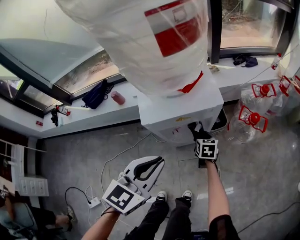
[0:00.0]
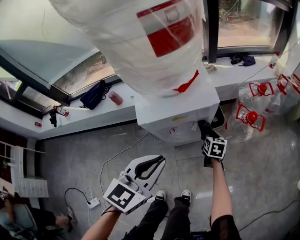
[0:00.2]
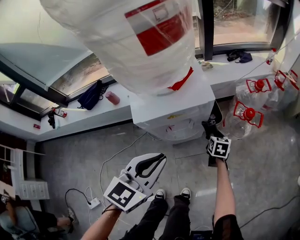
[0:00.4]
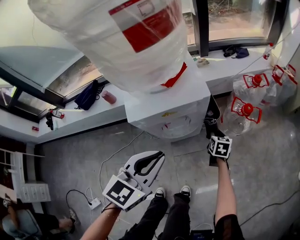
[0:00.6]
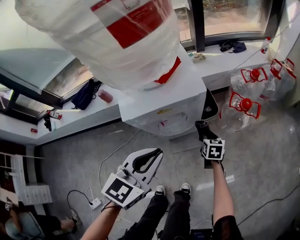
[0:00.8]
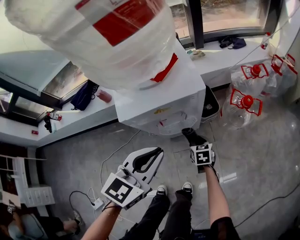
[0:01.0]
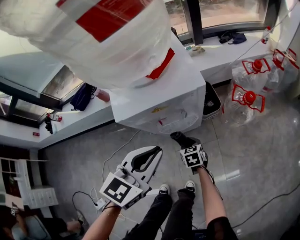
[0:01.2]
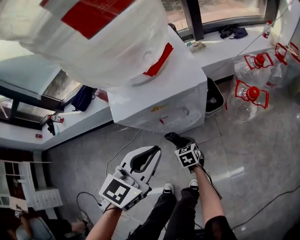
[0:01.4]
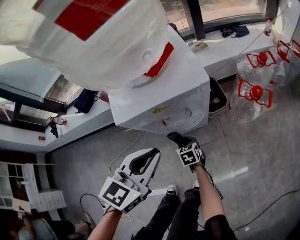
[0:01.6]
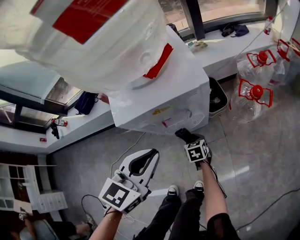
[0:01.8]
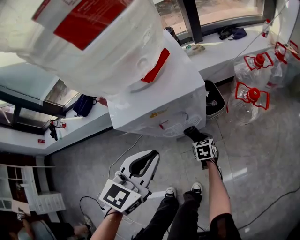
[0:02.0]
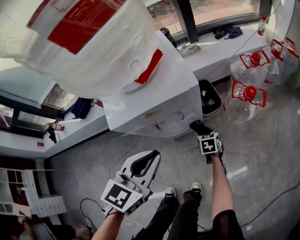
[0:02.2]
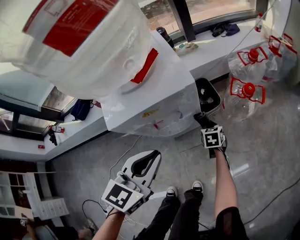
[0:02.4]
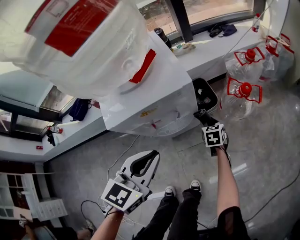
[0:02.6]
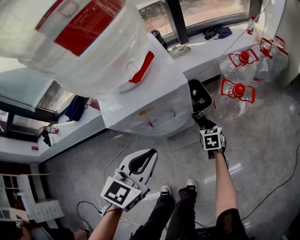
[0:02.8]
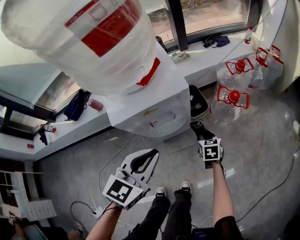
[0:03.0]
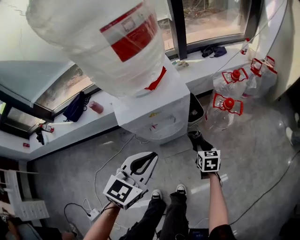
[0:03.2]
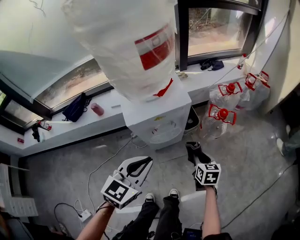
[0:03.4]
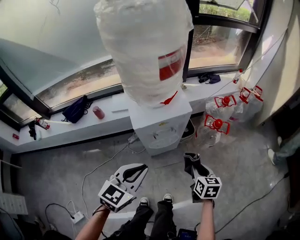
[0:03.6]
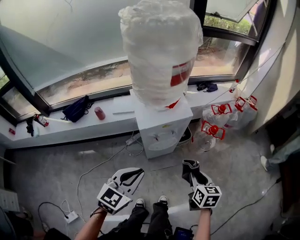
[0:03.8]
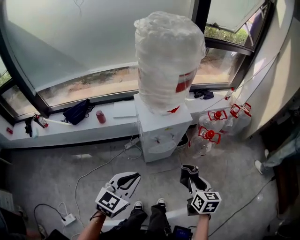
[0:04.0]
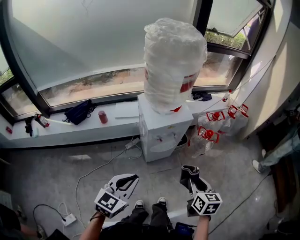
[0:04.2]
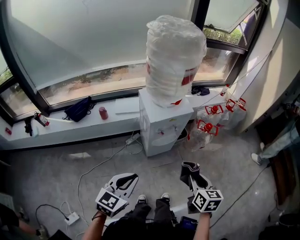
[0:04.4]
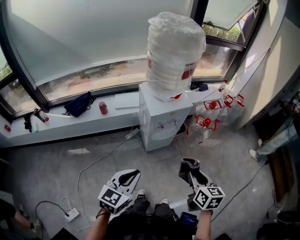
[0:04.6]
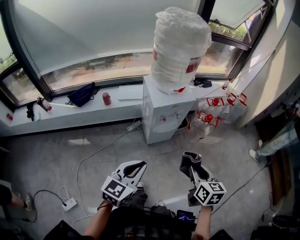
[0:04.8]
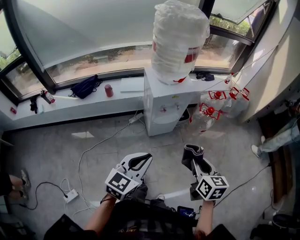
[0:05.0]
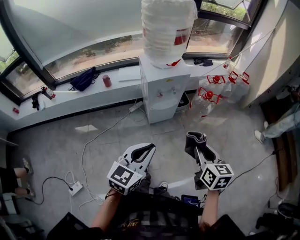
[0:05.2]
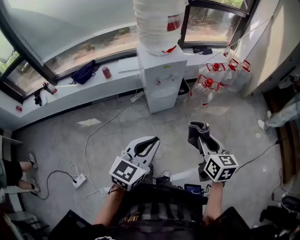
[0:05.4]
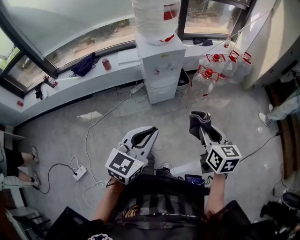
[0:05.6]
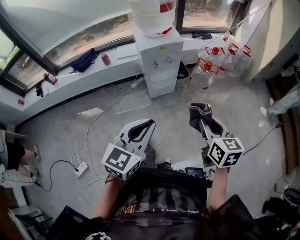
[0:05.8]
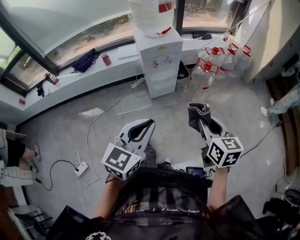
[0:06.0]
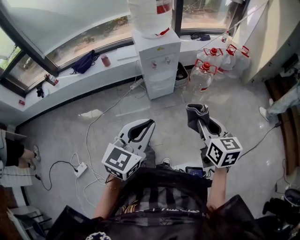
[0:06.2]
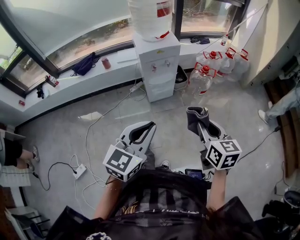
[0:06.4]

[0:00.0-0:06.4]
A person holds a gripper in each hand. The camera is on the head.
0.0 to 1.6 s: The right gripper moves downward, backward and to the left, some 15 cm. The left gripper heads downward, covering some 5 cm.
1.6 to 3.2 s: The left gripper travels upward by approximately 5 cm, while the right gripper travels to the right and upward by about 25 cm, and turns by roughly 20 degrees.
3.2 to 4.8 s: The right gripper heads upward and backward, covering approximately 50 cm, while the left gripper shifts approximately 35 cm backward, upward and to the left.
4.8 to 6.4 s: Both grippers move to the right and backward, roughly 20 cm.

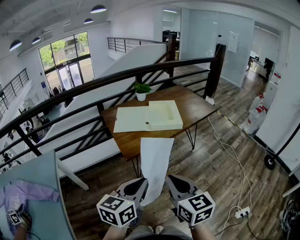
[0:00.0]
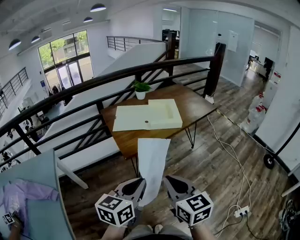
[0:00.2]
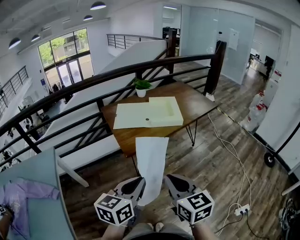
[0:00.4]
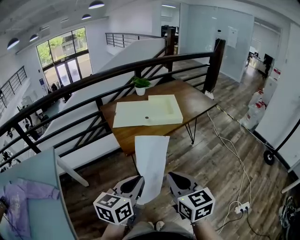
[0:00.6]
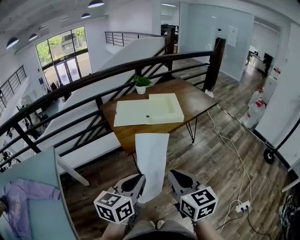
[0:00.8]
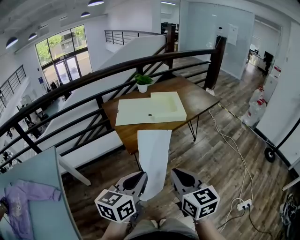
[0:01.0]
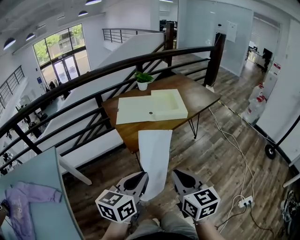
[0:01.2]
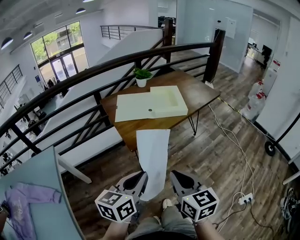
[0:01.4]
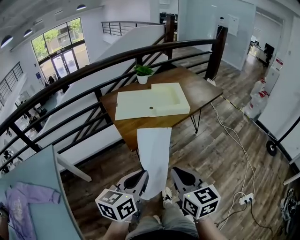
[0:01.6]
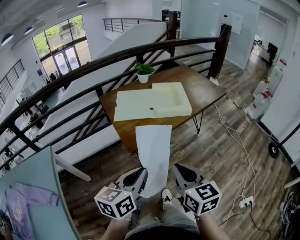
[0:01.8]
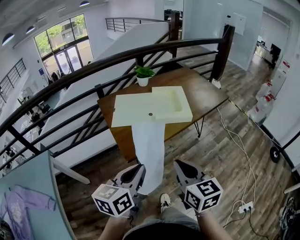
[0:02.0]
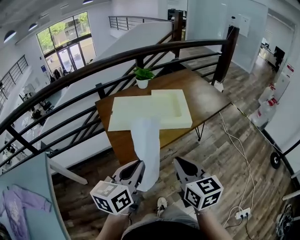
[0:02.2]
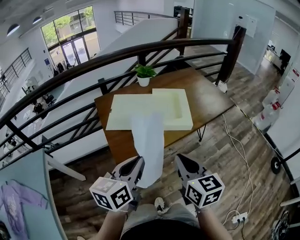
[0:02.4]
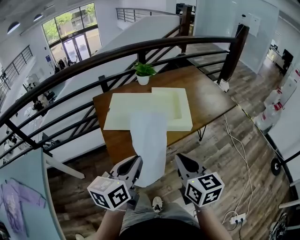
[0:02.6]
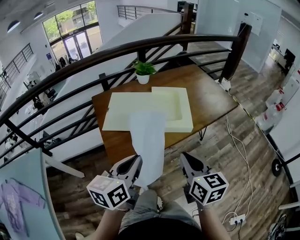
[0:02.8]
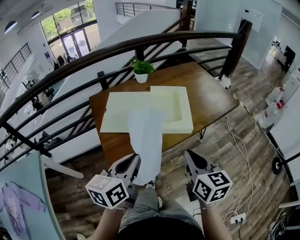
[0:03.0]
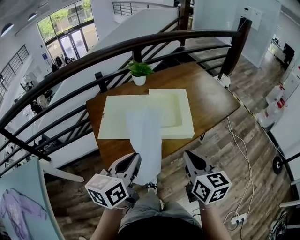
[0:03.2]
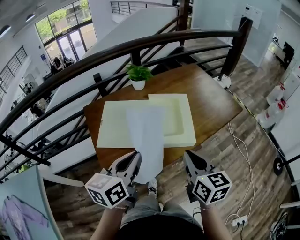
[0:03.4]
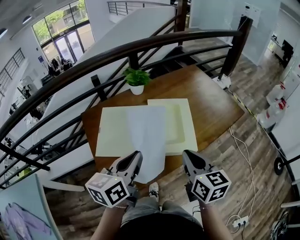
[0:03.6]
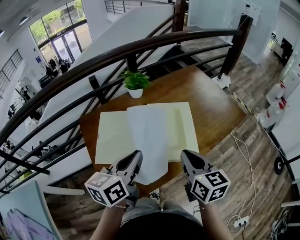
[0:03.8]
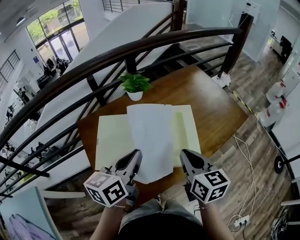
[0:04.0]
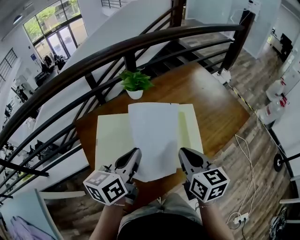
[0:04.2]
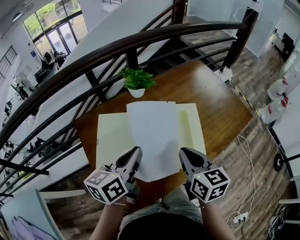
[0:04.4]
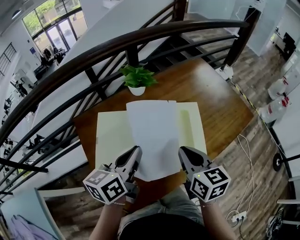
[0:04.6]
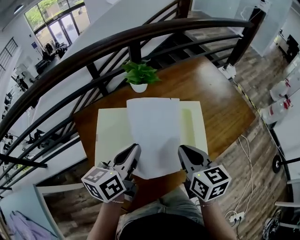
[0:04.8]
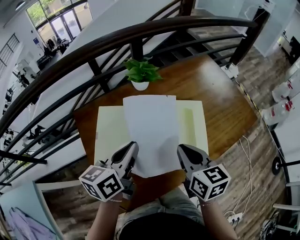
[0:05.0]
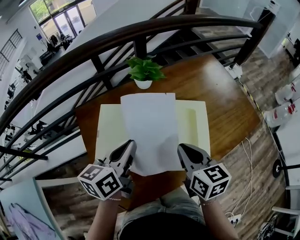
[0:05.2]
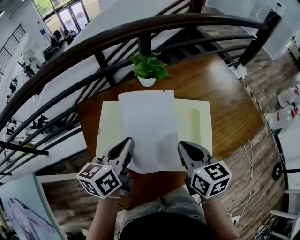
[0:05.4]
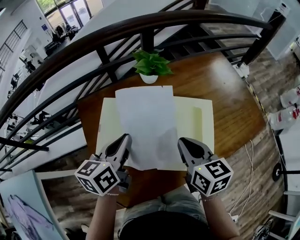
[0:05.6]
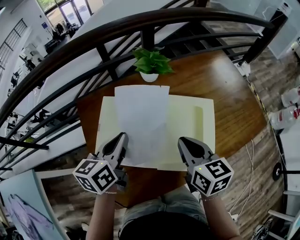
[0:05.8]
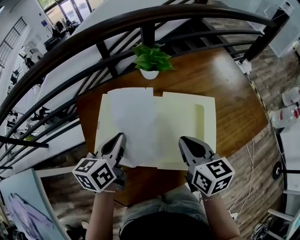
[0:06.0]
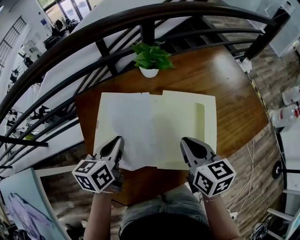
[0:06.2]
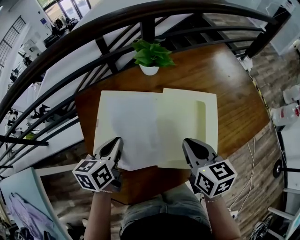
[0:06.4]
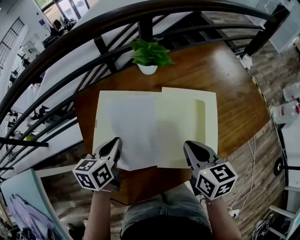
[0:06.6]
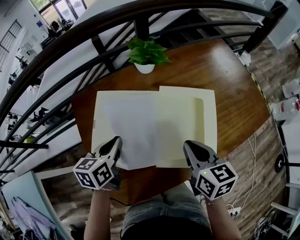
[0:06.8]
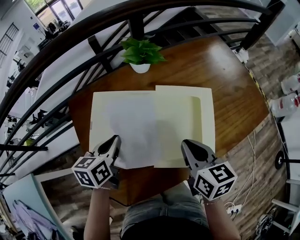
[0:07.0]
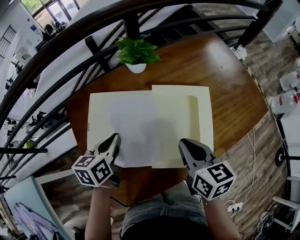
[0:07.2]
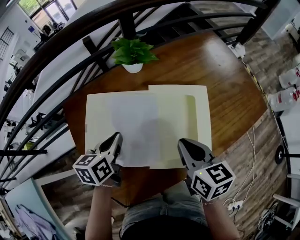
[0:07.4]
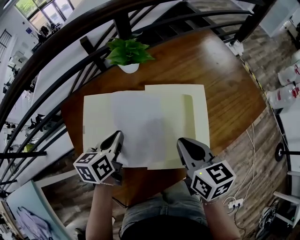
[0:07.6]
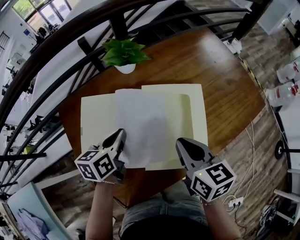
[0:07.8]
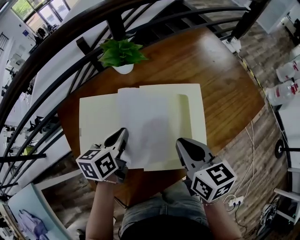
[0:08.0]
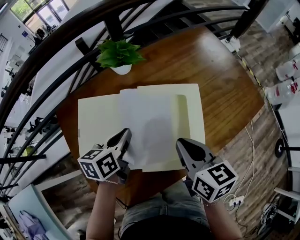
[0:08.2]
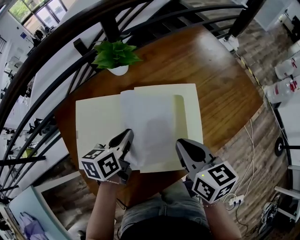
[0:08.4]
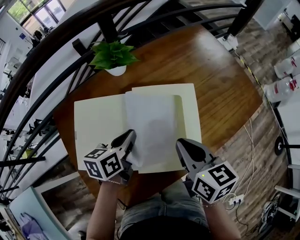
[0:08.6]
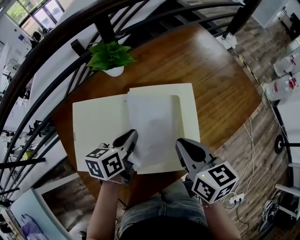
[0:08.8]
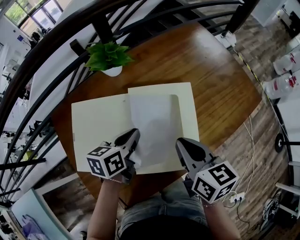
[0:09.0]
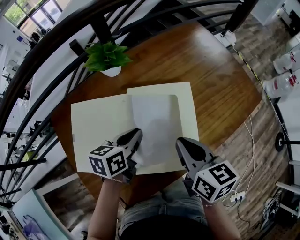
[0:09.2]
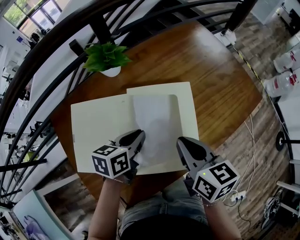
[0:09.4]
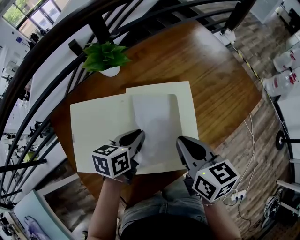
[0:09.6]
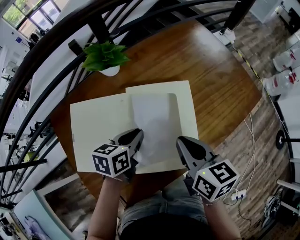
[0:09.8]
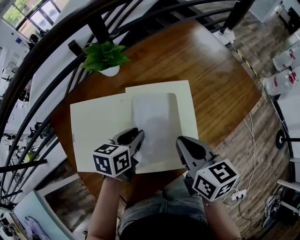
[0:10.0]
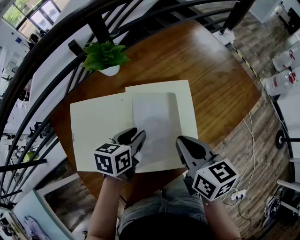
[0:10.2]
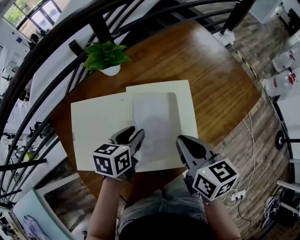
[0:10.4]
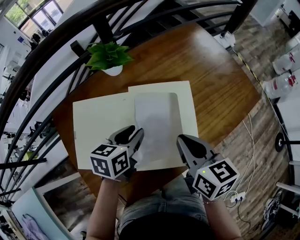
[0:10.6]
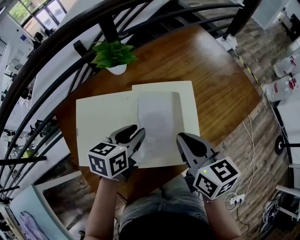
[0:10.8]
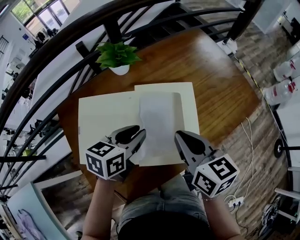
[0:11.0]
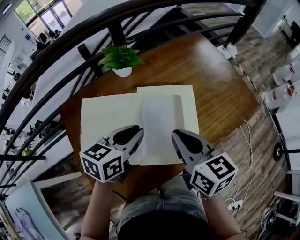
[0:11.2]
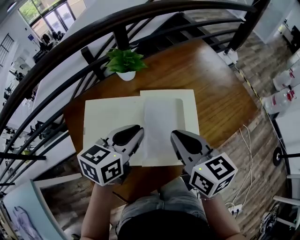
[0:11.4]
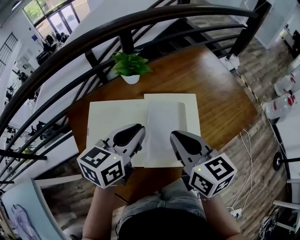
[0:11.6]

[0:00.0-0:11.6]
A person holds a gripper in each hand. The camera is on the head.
0.0 to 1.4 s: The left gripper changes place by about 5 cm.
1.4 to 2.8 s: The right gripper shifts about 30 cm forward and to the right, while the left gripper moves forward, some 25 cm.
2.8 to 4.4 s: The two grippers go approximately 25 cm forward.
4.4 to 5.8 s: The right gripper shifts about 5 cm forward. The left gripper travels to the left by about 5 cm.
5.8 to 7.2 s: The left gripper is displaced downward by roughly 10 cm.
7.2 to 8.8 s: The right gripper changes place by approximately 5 cm. Meanwhile the left gripper shifts roughly 15 cm to the right.
8.8 to 10.2 s: The left gripper opens.
10.2 to 11.6 s: The right gripper heads upward and to the left, covering approximately 10 cm. Meanwhile the left gripper is displaced upward by some 15 cm, and swivels approximately 20 degrees.

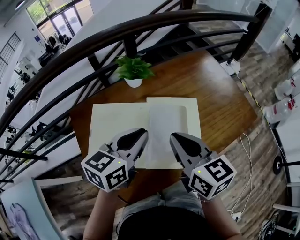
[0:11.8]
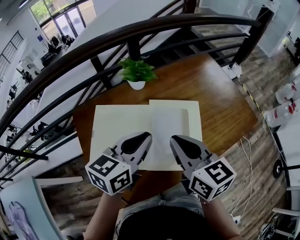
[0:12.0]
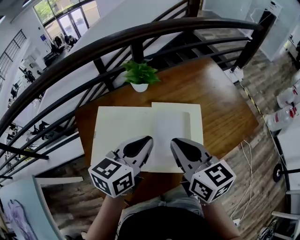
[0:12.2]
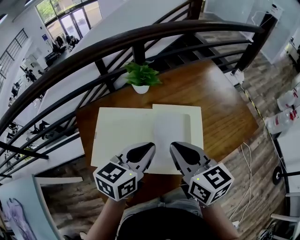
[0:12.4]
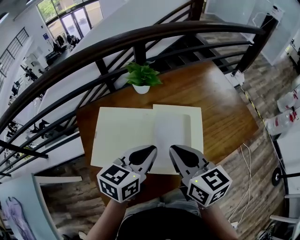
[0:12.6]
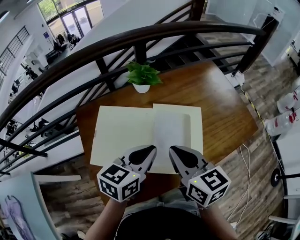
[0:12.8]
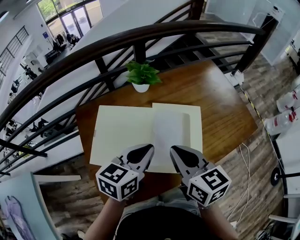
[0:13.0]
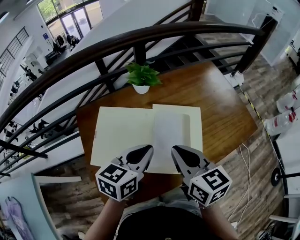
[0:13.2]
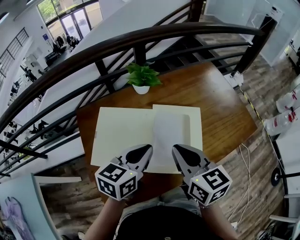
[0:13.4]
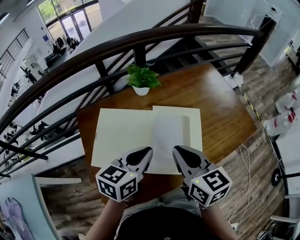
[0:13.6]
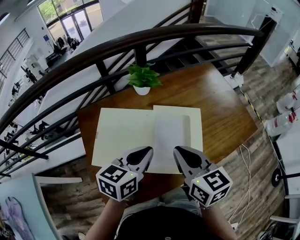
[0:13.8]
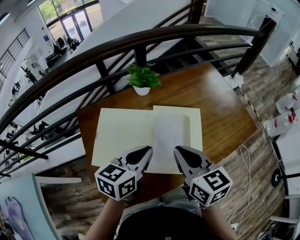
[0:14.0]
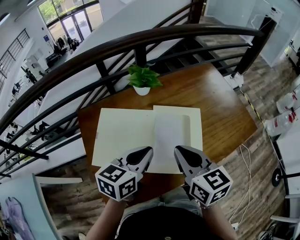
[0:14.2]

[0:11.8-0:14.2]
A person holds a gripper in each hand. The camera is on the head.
11.8 to 13.0 s: The grippers stay close to where they were, moving slightly.
13.0 to 14.2 s: Both grippers stay put.

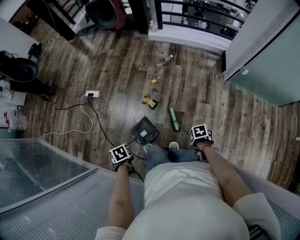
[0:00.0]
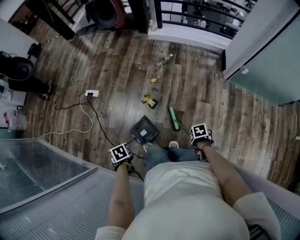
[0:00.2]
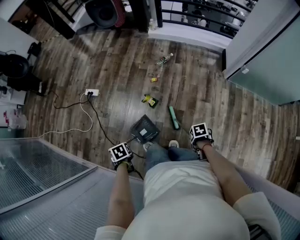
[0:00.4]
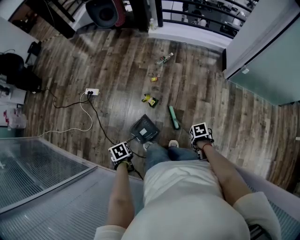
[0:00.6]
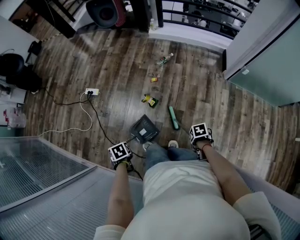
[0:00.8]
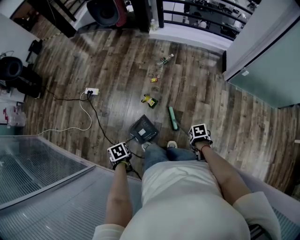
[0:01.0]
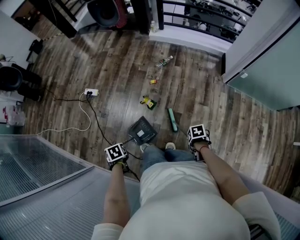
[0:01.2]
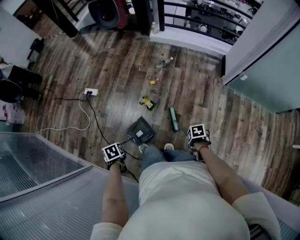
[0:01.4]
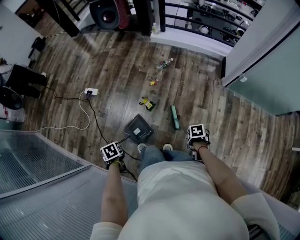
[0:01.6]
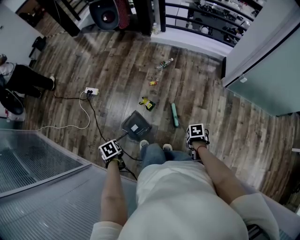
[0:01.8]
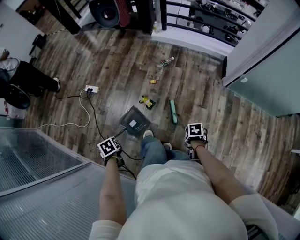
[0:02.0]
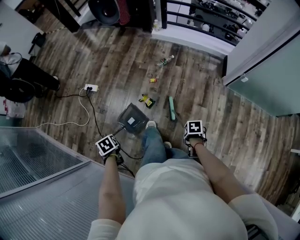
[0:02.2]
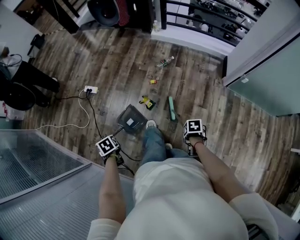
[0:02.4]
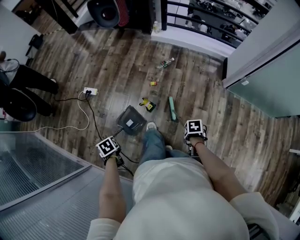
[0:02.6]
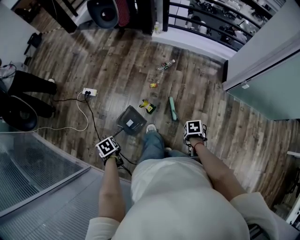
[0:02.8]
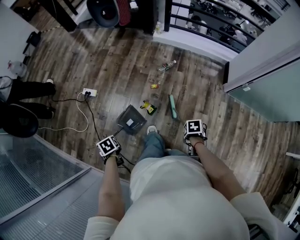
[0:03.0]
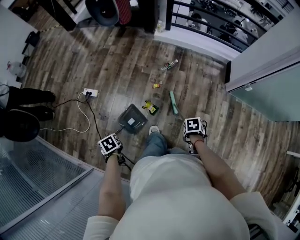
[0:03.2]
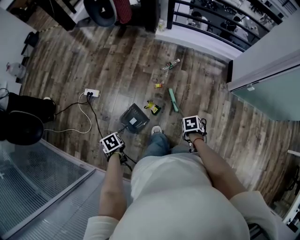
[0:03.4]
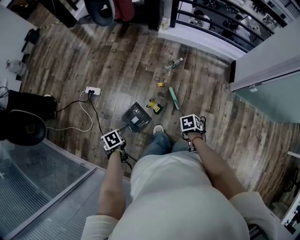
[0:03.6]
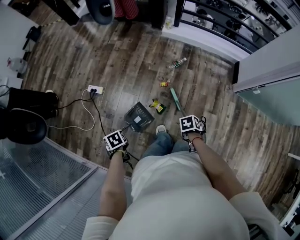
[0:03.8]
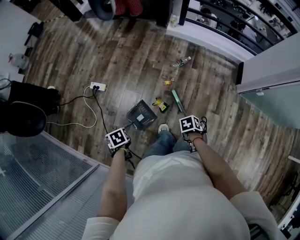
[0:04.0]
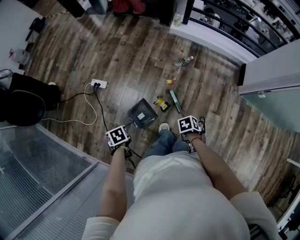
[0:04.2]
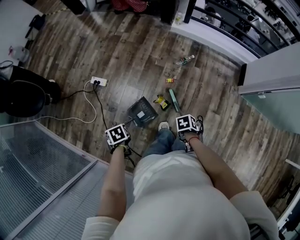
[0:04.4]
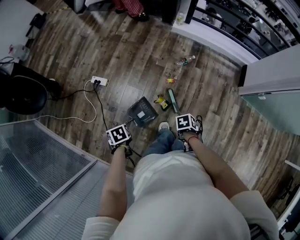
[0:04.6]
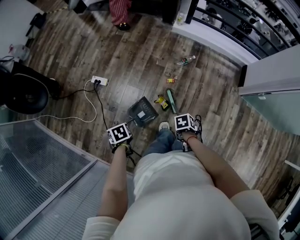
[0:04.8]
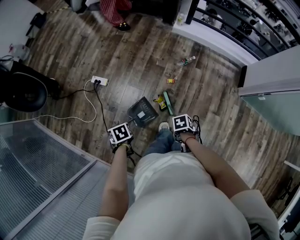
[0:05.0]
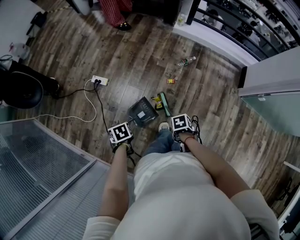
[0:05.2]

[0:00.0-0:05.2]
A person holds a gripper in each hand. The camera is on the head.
1.8 to 3.4 s: The left gripper changes place by about 20 cm.
3.4 to 5.2 s: The left gripper ends up some 5 cm from where it was.
